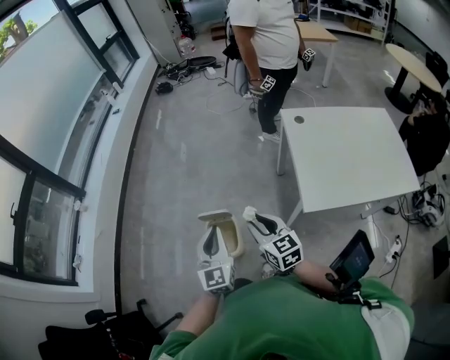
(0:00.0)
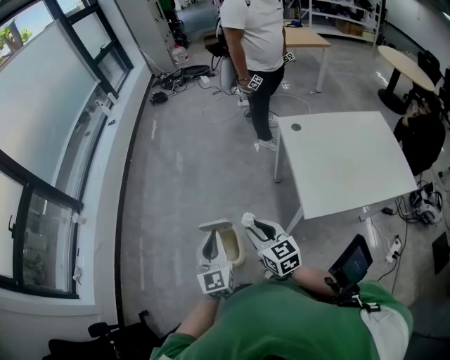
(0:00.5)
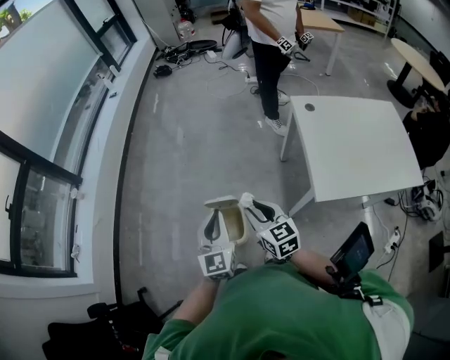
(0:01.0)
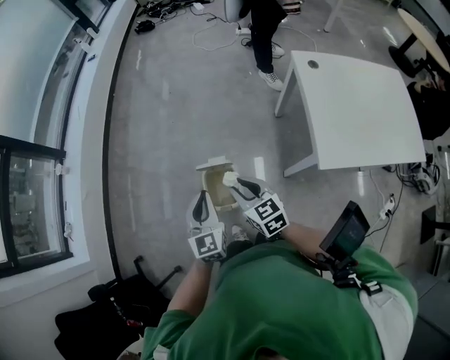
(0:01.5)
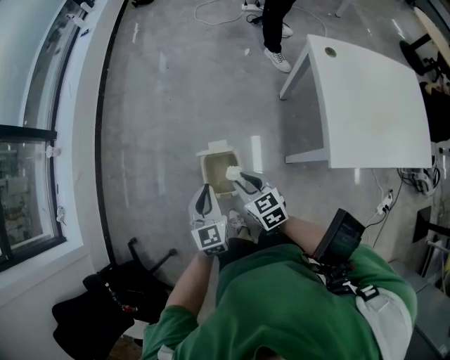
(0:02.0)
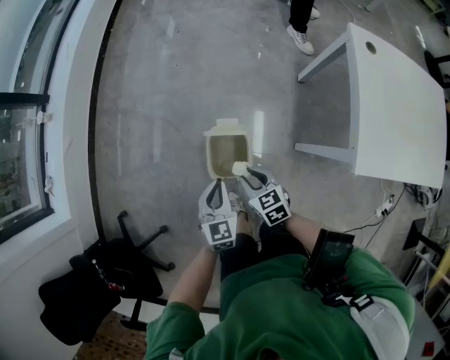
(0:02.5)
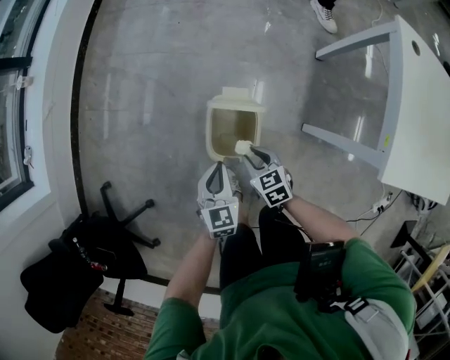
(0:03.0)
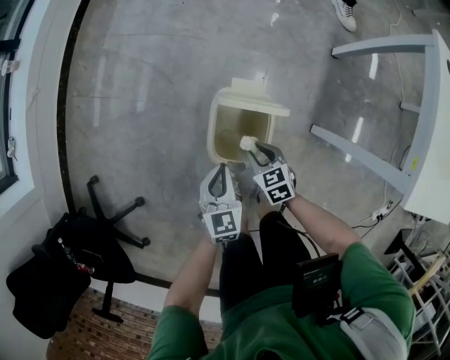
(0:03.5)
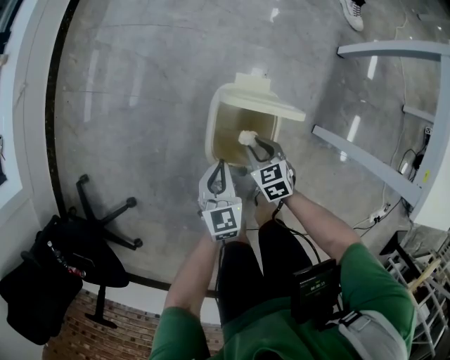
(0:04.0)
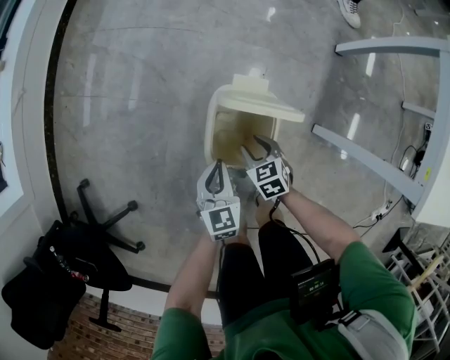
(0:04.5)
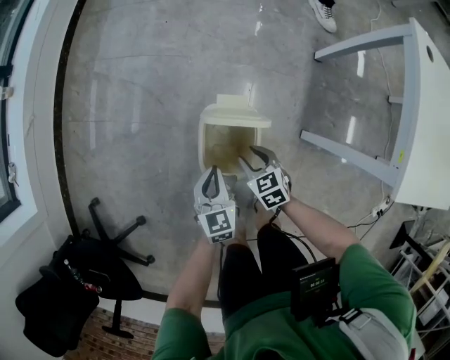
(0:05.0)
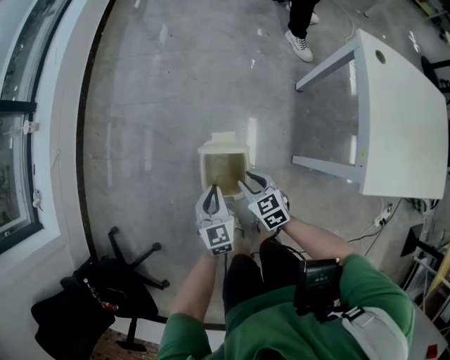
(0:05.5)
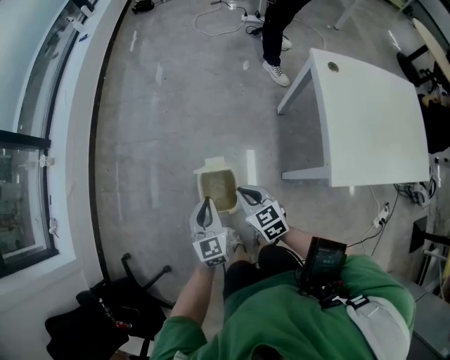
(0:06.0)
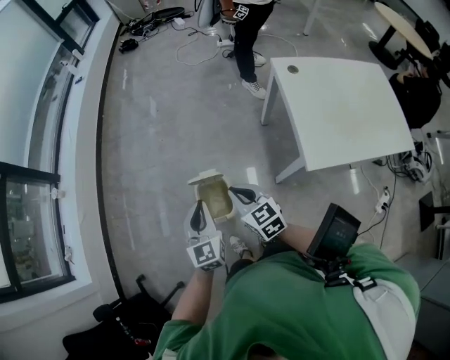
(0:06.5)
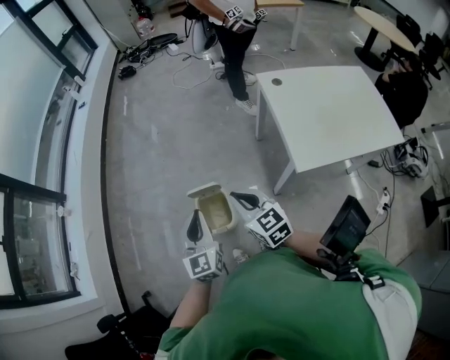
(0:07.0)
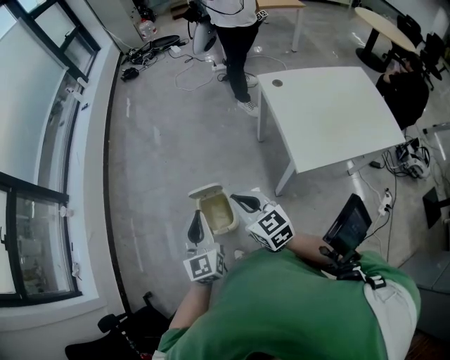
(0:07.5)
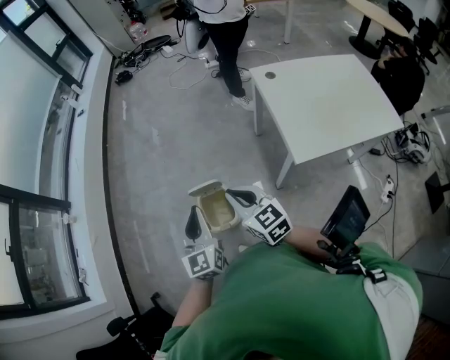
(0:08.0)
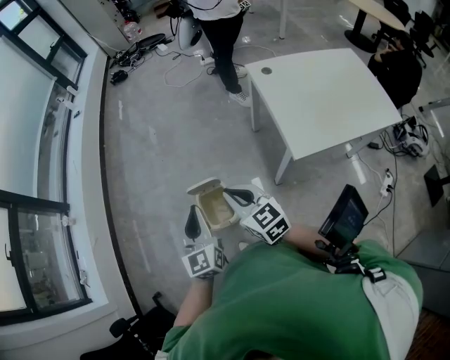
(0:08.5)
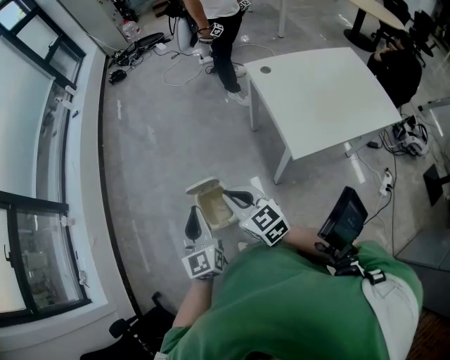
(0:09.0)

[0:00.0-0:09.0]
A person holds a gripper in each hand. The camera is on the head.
0:00.0 to 0:02.0: Both grippers travel together downward, to the left and forward, approximately 20 cm. The left gripper rotates roughly 20 degrees. The right gripper changes its angle by approximately 20 degrees.
0:02.0 to 0:04.5: The grippers both shift downward by approximately 40 cm. The right gripper swivels approximately 30 degrees.
0:04.5 to 0:07.0: The two grippers go about 50 cm upward. The right gripper tilts its fingers approximately 40 degrees upward, and closes; the left gripper angles its fingers upward, by about 30 degrees.
0:07.0 to 0:09.0: There are only small adjustments of the grippers.

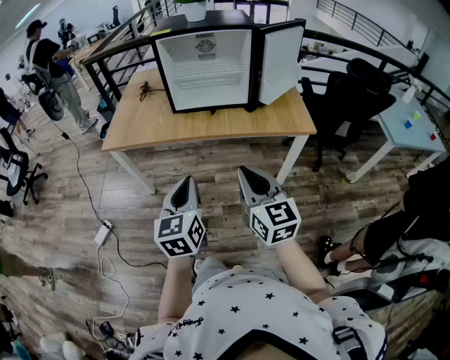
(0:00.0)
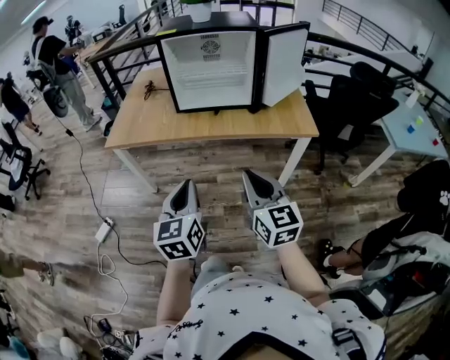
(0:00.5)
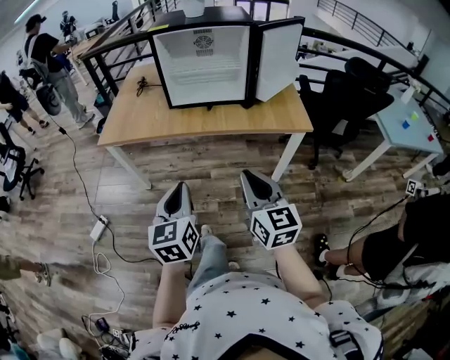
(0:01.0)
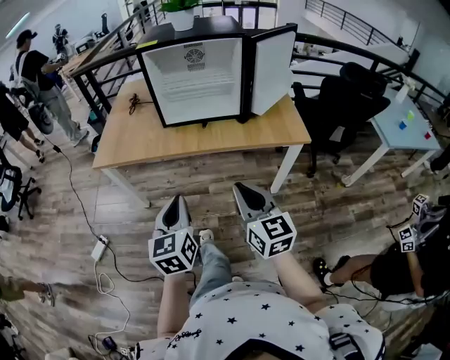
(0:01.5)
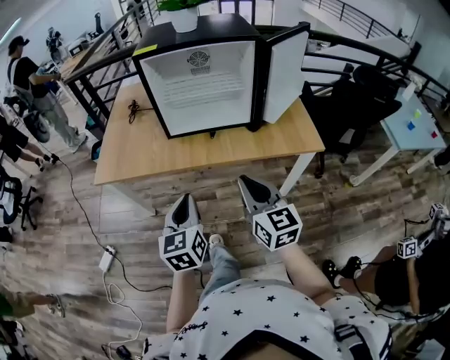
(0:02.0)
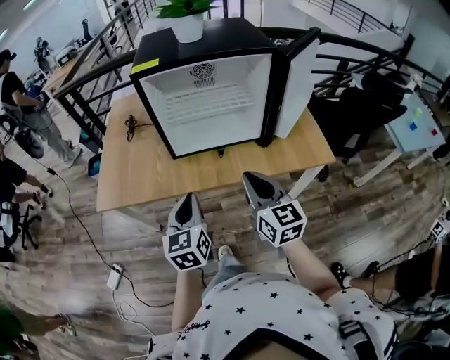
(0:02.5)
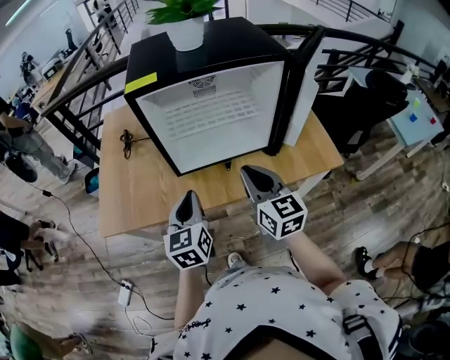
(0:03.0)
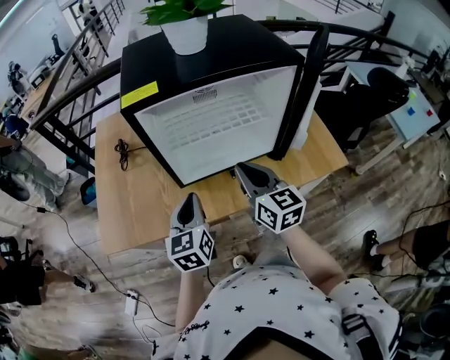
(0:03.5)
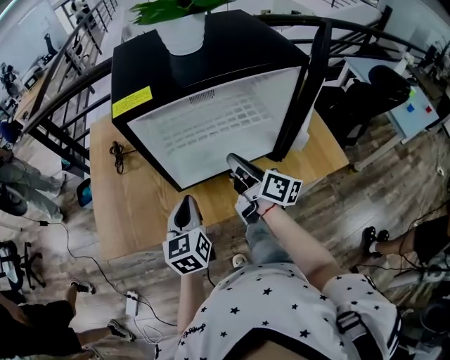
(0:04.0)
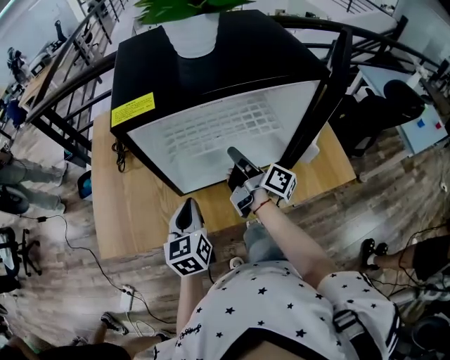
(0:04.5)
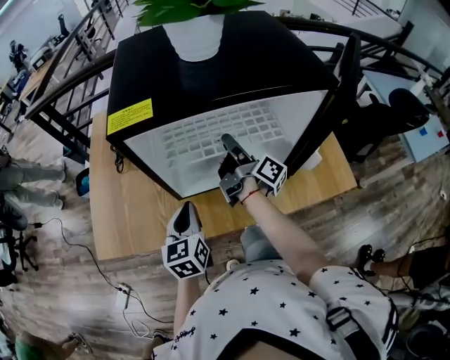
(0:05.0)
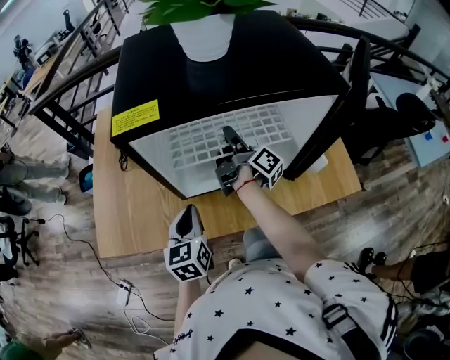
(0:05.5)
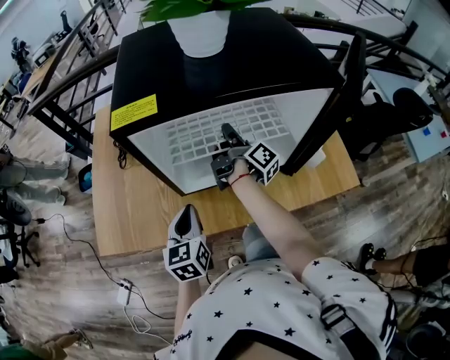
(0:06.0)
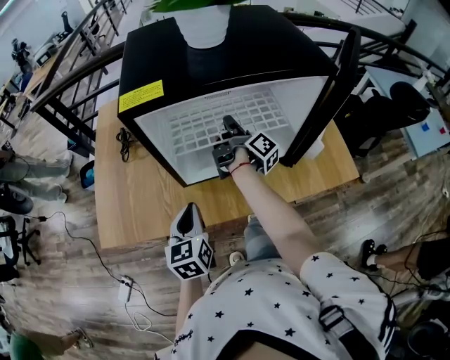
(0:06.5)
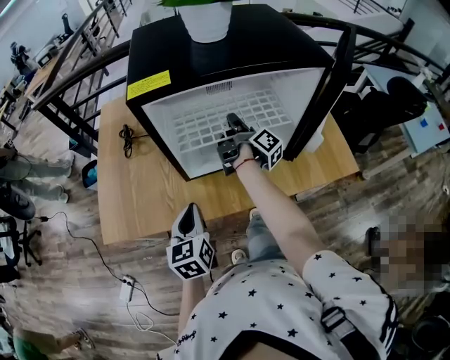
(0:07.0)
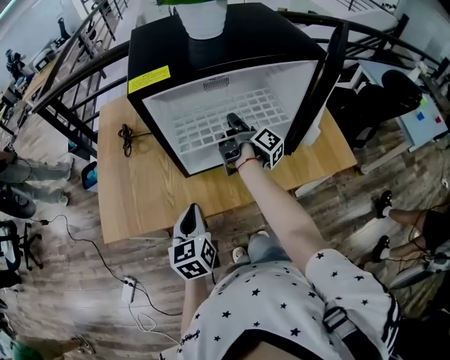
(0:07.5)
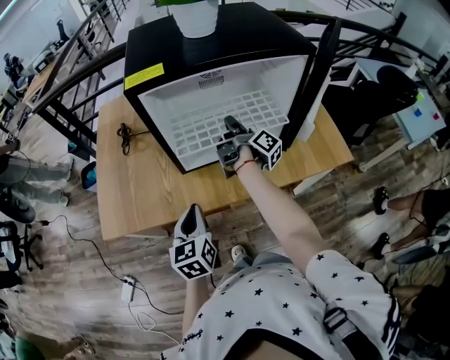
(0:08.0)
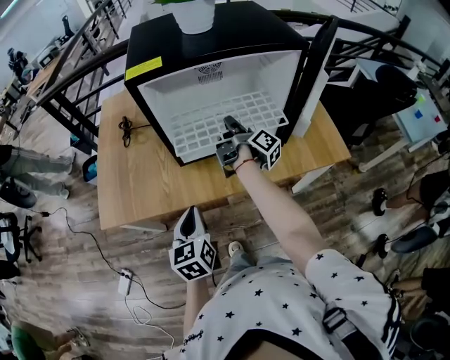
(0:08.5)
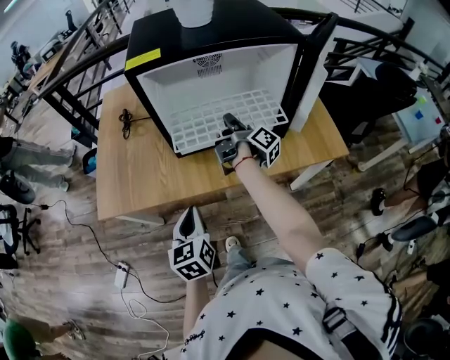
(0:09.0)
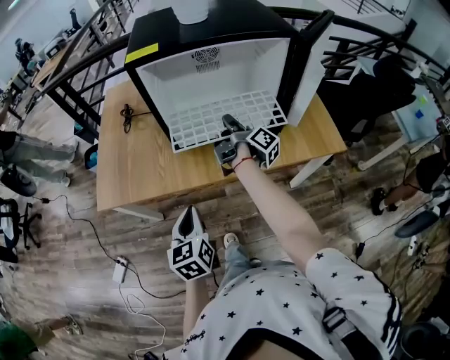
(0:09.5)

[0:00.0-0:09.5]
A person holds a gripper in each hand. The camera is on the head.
0:00.0 to 0:02.0: Both grippers move forward, about 15 cm.
0:02.0 to 0:04.0: Both grippers move forward, approximately 30 cm. The right gripper rotates around the line of its fingers by roughly 50 degrees, clockwise from behind.
0:04.0 to 0:05.5: The right gripper moves forward, approximately 15 cm, changes its angle by about 30 degrees, and opens.
0:05.5 to 0:07.5: The left gripper goes about 10 cm backward.
0:07.5 to 0:09.5: Both grippers move backward, about 10 cm.

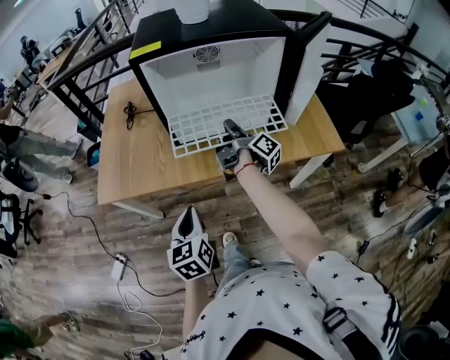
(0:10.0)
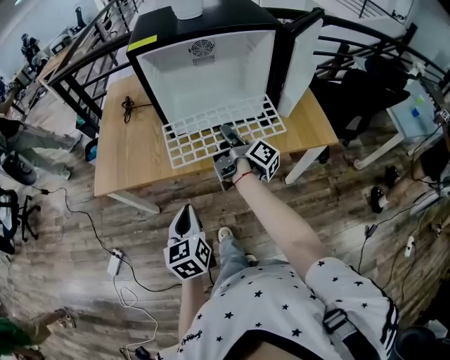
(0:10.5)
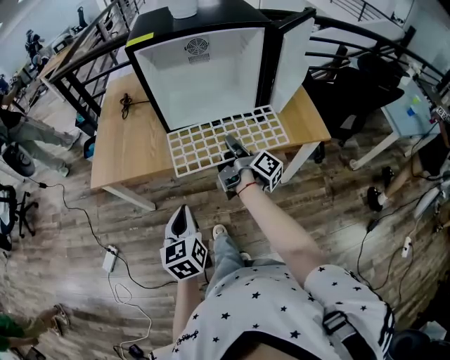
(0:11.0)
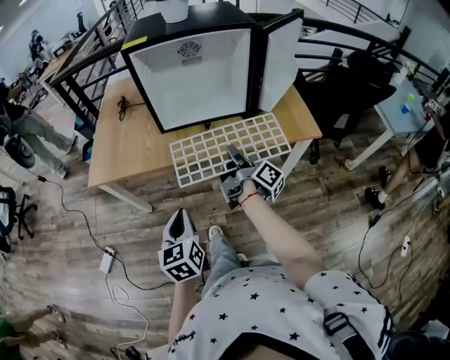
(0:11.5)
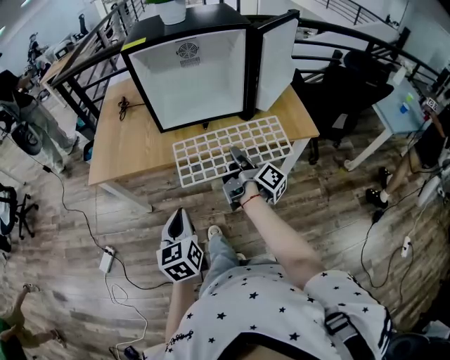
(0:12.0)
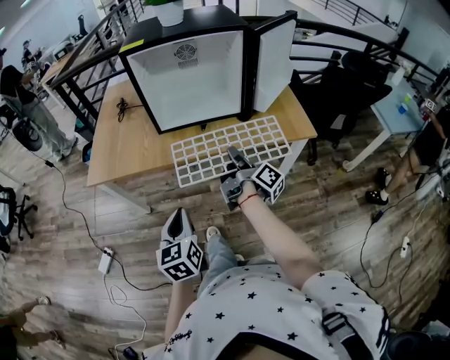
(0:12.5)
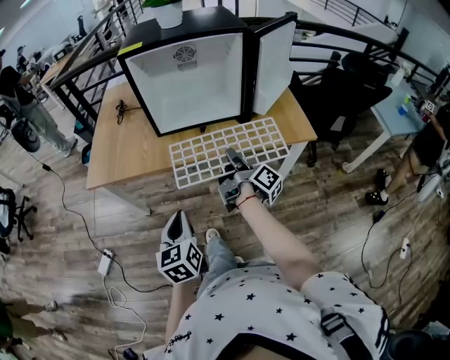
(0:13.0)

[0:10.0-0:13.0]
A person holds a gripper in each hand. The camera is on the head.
0:10.0 to 0:11.5: The left gripper travels backward by approximately 10 cm. The right gripper travels backward by roughly 20 cm.
0:11.5 to 0:13.0: The grippers make only small movements.

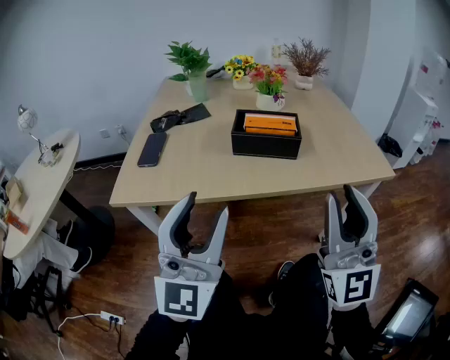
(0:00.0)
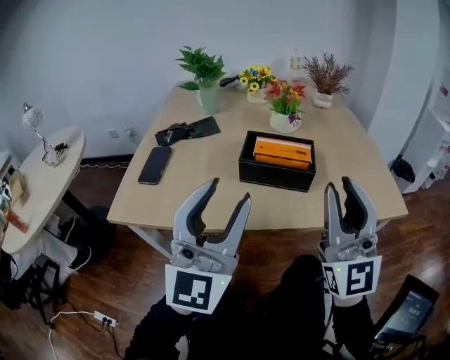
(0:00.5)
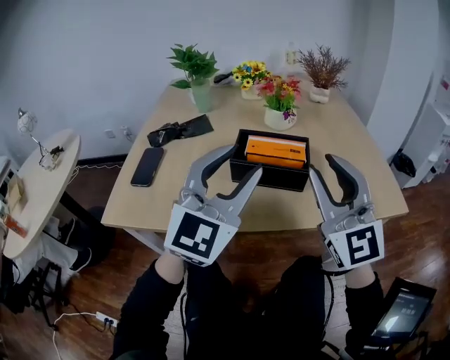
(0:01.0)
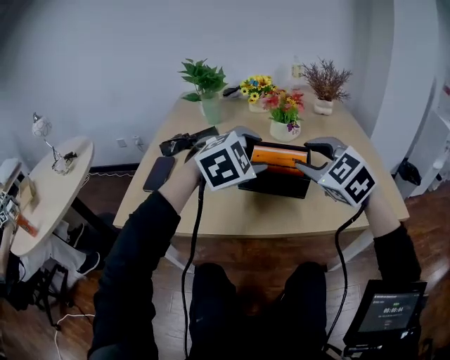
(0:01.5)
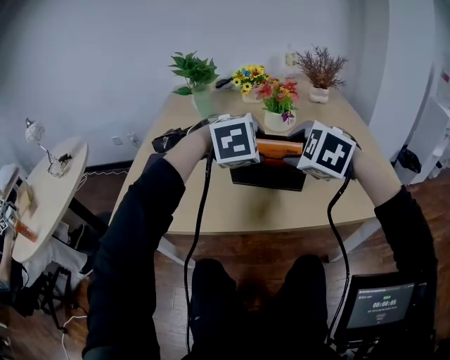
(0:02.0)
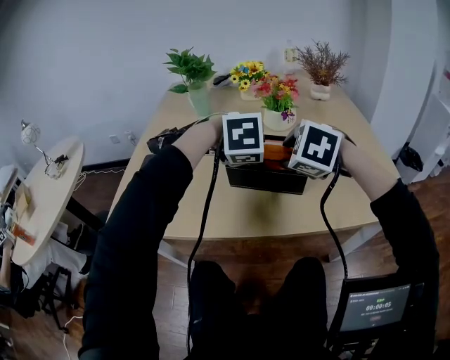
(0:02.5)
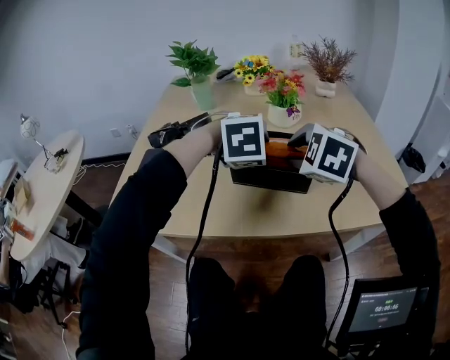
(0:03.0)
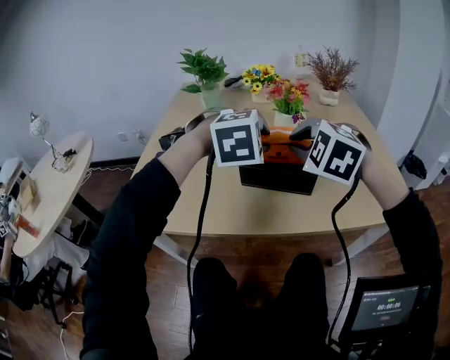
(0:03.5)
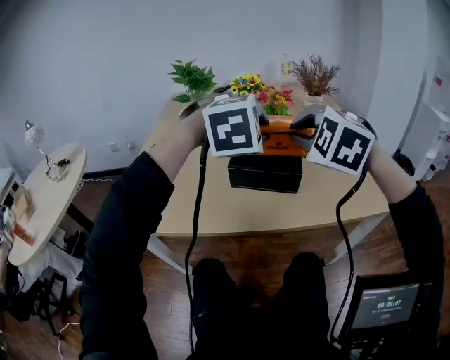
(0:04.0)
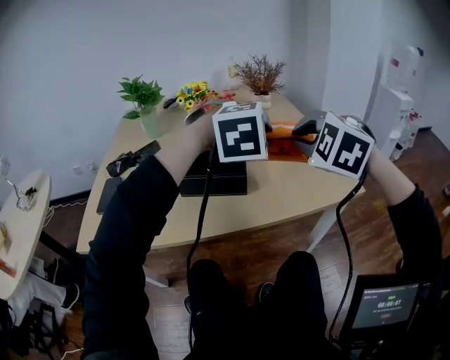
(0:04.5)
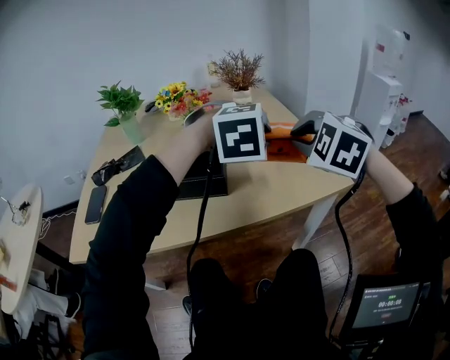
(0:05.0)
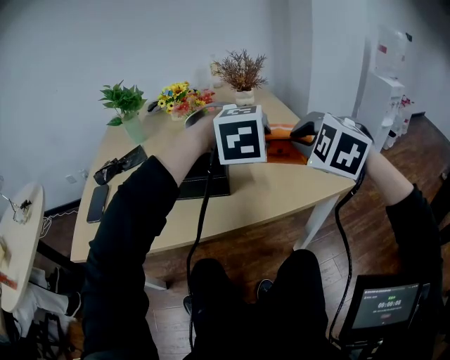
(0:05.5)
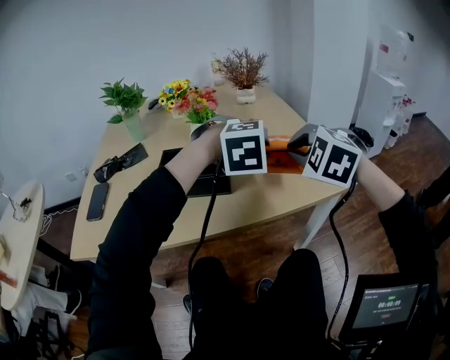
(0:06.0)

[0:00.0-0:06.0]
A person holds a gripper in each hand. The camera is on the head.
0:00.0 to 0:02.0: The left gripper goes roughly 35 cm forward and to the right, and tilts its fingers some 80 degrees downward; the right gripper is displaced forward by approximately 30 cm, angles its fingers downward, by roughly 70 degrees, and opens.
0:02.0 to 0:04.0: Both grippers travel together upward, approximately 10 cm. The left gripper closes up. Meanwhile the right gripper closes its fingers.
0:04.0 to 0:06.0: Both grippers travel together to the right, roughly 20 cm.
